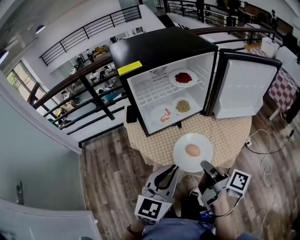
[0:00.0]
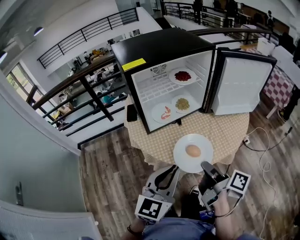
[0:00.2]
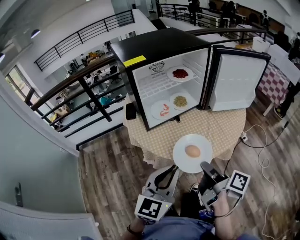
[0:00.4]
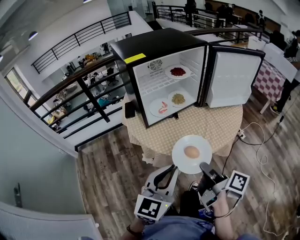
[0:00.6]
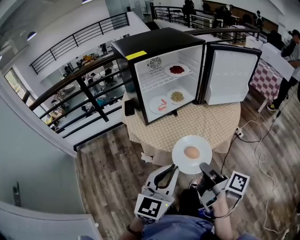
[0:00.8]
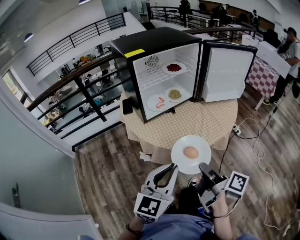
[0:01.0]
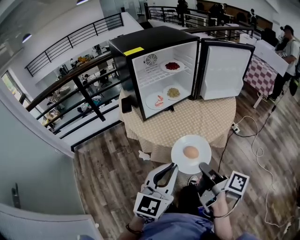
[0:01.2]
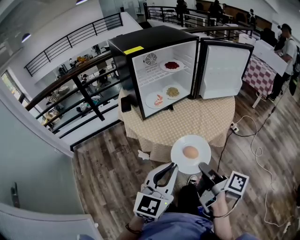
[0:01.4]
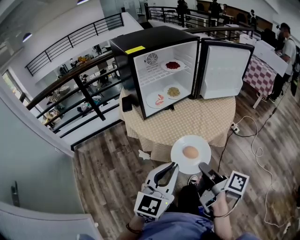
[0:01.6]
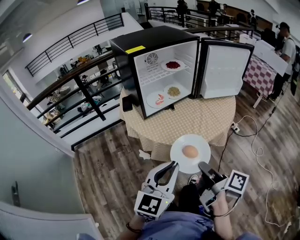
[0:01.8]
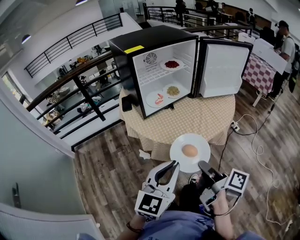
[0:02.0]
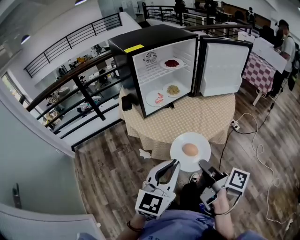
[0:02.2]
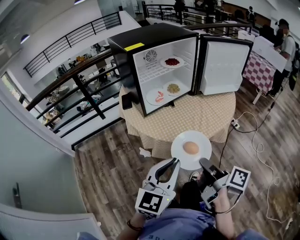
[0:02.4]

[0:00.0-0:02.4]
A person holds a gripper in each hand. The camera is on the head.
0:00.0 to 0:01.2: Both grippers travel together backward, about 15 cm.
0:01.2 to 0:02.4: The grippers move only a little.

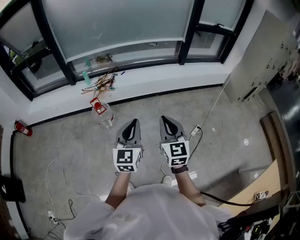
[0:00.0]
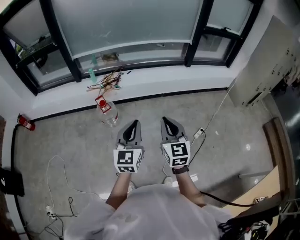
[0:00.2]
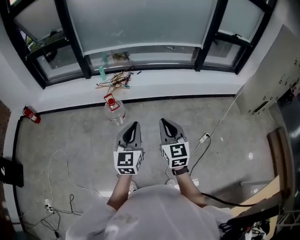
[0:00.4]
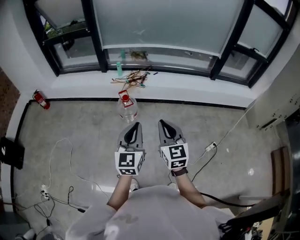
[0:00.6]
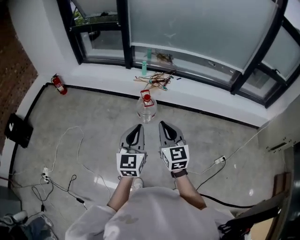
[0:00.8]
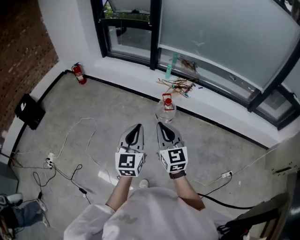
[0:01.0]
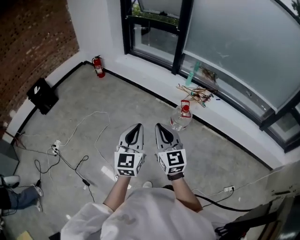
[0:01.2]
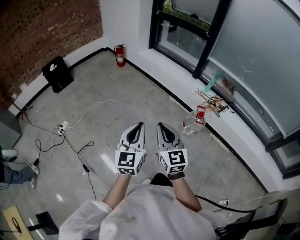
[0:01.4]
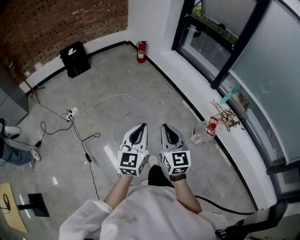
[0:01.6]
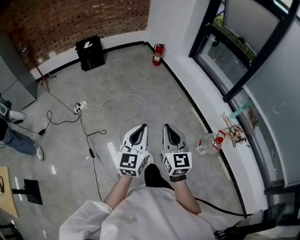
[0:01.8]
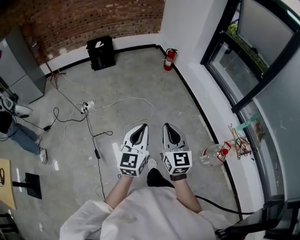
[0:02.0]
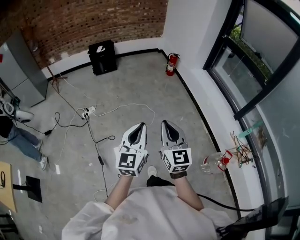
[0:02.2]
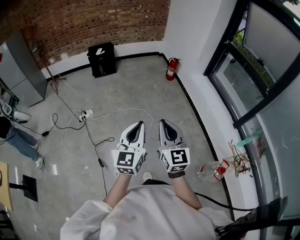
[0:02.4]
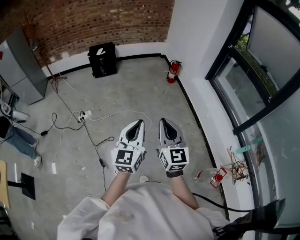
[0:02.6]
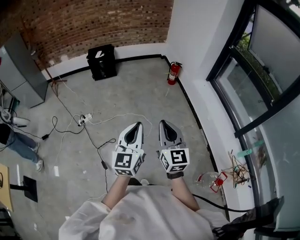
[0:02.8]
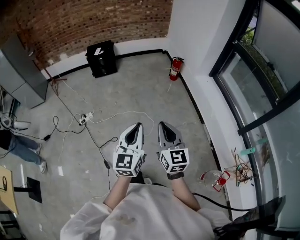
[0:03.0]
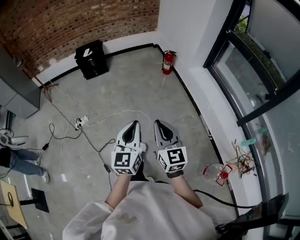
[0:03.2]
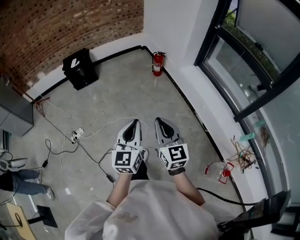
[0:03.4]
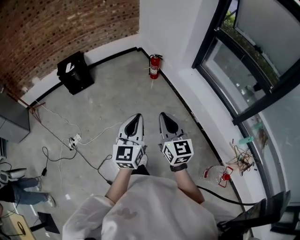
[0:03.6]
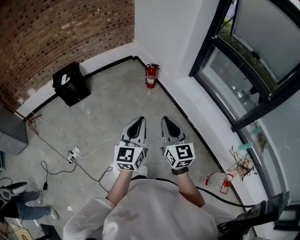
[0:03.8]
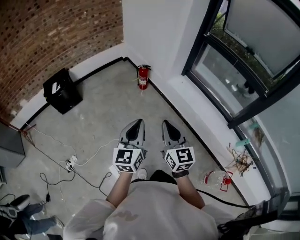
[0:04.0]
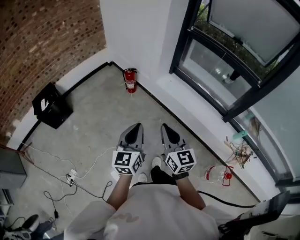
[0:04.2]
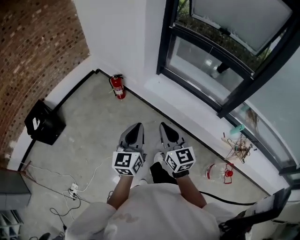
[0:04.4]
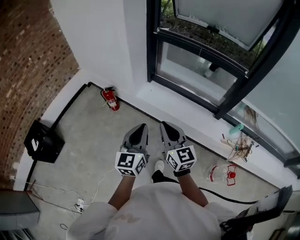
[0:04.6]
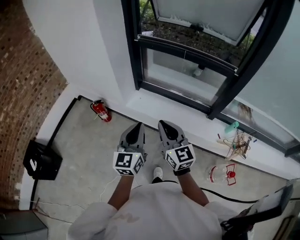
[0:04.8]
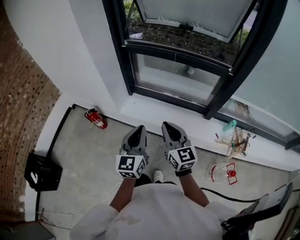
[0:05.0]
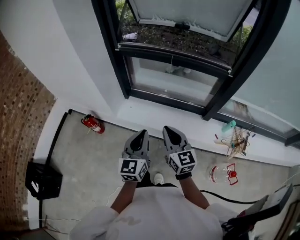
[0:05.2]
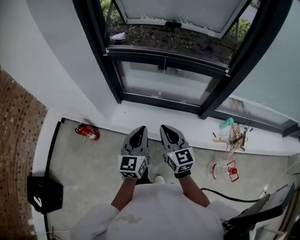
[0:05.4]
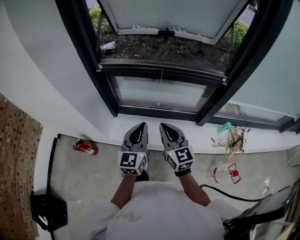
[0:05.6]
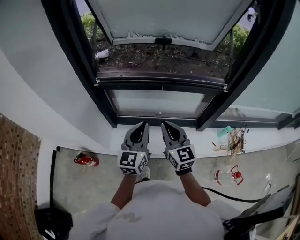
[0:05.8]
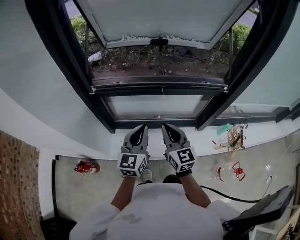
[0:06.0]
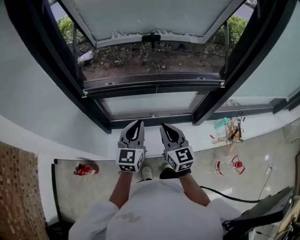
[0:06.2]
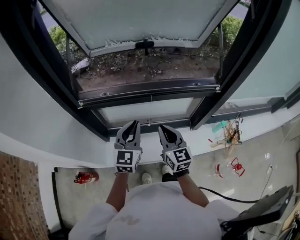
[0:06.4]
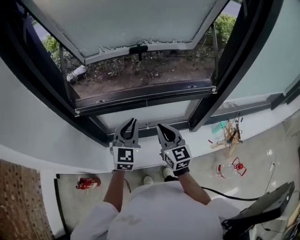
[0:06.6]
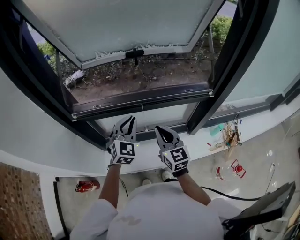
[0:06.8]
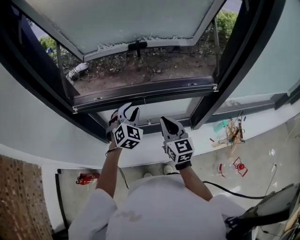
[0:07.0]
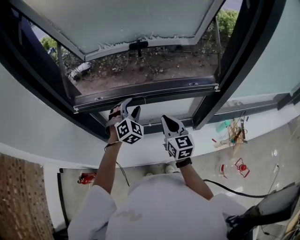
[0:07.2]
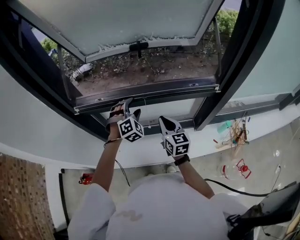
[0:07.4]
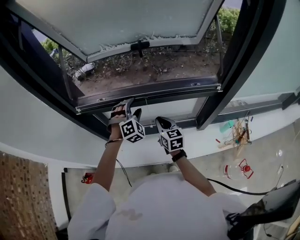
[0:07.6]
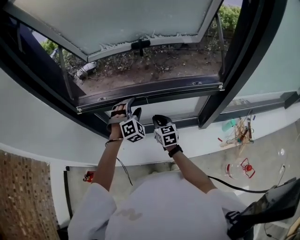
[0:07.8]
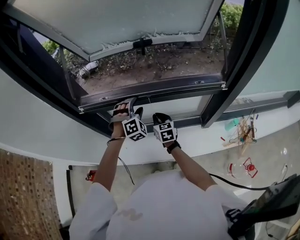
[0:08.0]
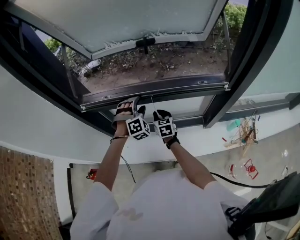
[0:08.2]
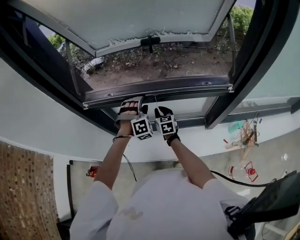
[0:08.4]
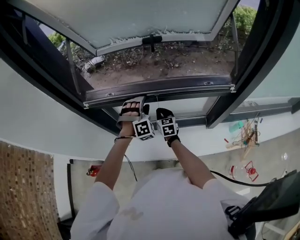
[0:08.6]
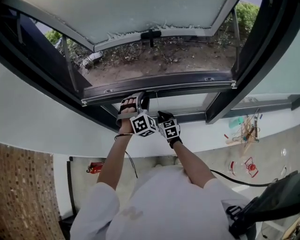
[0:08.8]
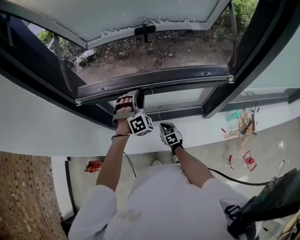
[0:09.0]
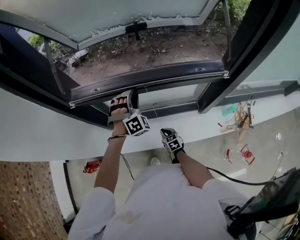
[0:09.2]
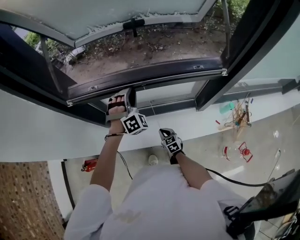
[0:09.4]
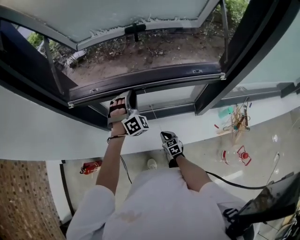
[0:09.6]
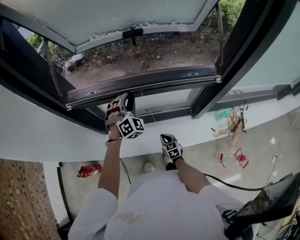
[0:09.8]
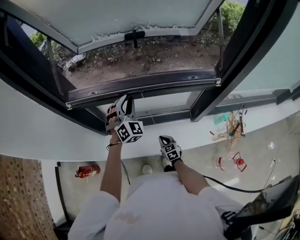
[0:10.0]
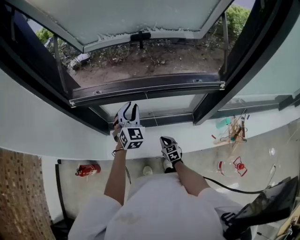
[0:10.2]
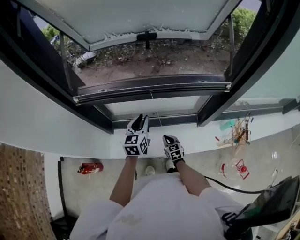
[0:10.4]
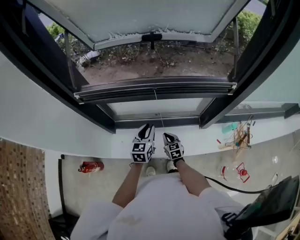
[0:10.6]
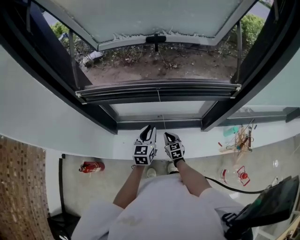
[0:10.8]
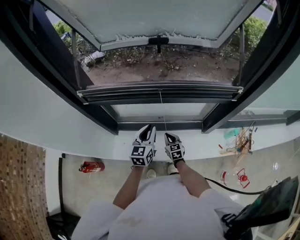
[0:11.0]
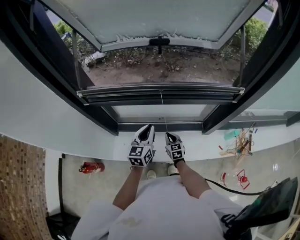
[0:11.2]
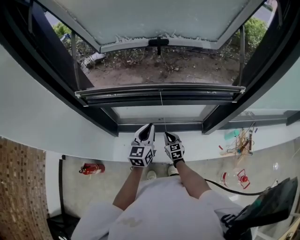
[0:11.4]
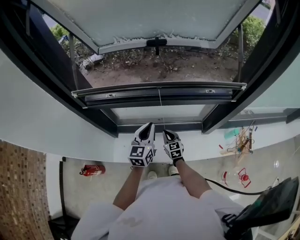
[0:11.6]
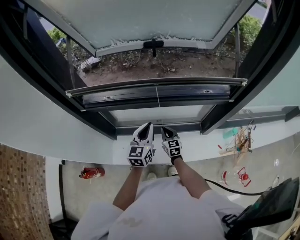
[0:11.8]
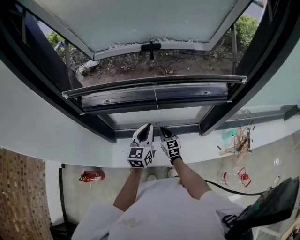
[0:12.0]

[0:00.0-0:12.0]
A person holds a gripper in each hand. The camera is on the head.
0:00.0 to 0:01.6: Both grippers are carried some 60 cm. The left gripper turns by approximately 60 degrees, while the right gripper rotates roughly 70 degrees.
0:01.6 to 0:03.0: Both grippers move forward, some 40 cm. The right gripper rotates some 20 degrees. The left gripper swivels some 20 degrees.
0:03.0 to 0:04.4: Both grippers are carried about 50 cm. The left gripper rotates about 40 degrees. The right gripper turns by some 30 degrees.
0:04.4 to 0:06.0: Both grippers are carried roughly 60 cm. The right gripper turns by approximately 40 degrees. The left gripper turns by about 40 degrees.
0:06.0 to 0:07.6: The left gripper is displaced forward by roughly 20 cm, rolls clockwise, seen from behind, by some 70 degrees, and opens up. Meanwhile the right gripper travels forward, downward and to the right by approximately 20 cm.
0:07.6 to 0:09.0: The left gripper closes, while the right gripper moves downward, roughly 25 cm, and changes its angle by some 20 degrees.
0:09.0 to 0:10.4: Both grippers travel together backward, approximately 5 cm. The left gripper rolls counterclockwise, seen from behind, by some 80 degrees.
0:10.4 to 0:12.0: The right gripper is displaced upward and forward by approximately 15 cm.

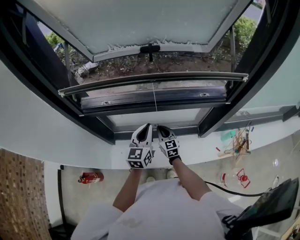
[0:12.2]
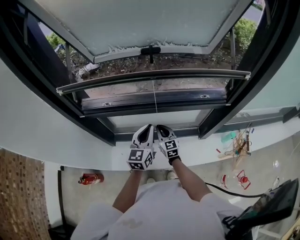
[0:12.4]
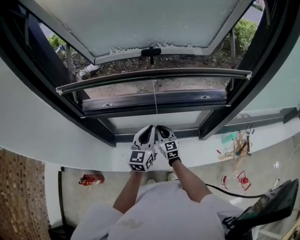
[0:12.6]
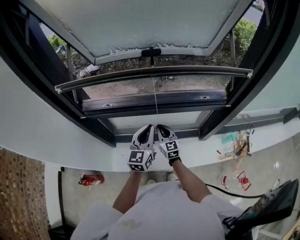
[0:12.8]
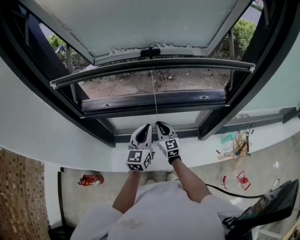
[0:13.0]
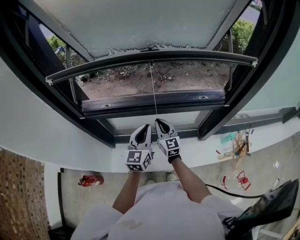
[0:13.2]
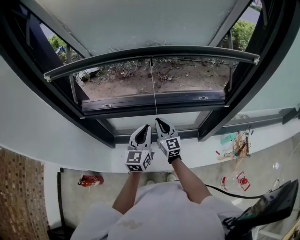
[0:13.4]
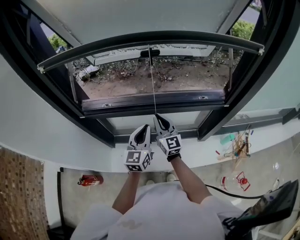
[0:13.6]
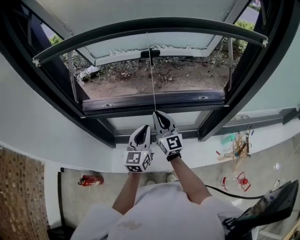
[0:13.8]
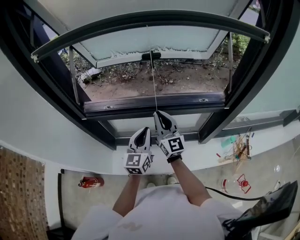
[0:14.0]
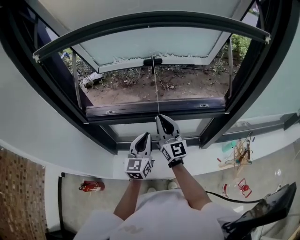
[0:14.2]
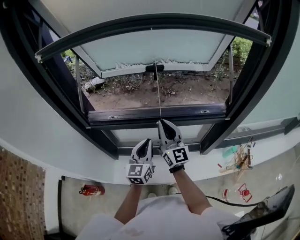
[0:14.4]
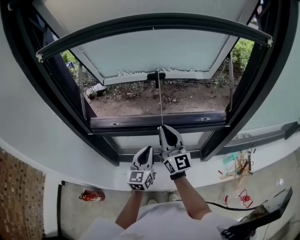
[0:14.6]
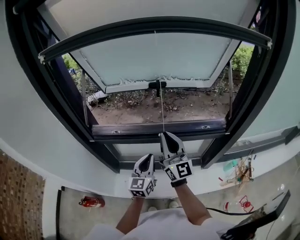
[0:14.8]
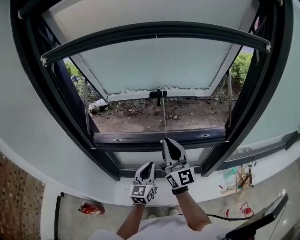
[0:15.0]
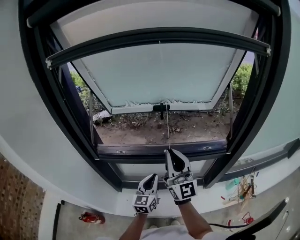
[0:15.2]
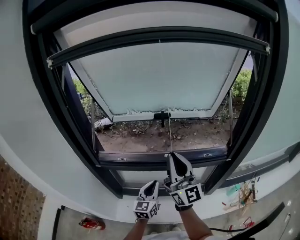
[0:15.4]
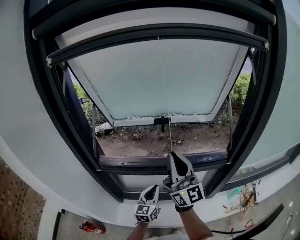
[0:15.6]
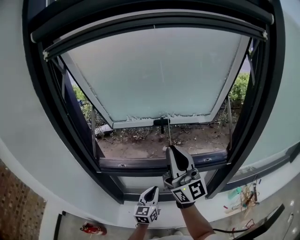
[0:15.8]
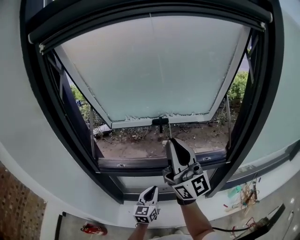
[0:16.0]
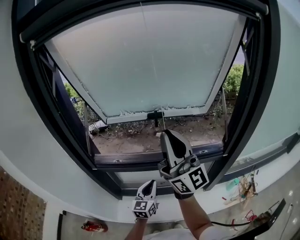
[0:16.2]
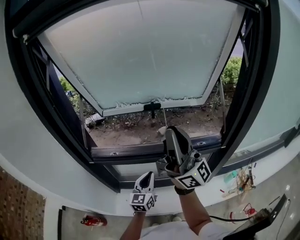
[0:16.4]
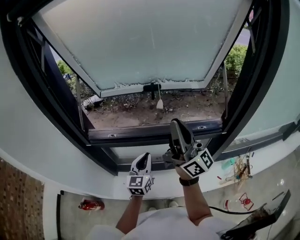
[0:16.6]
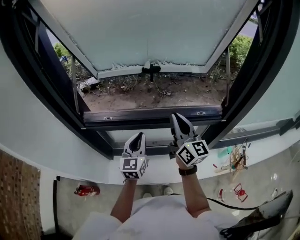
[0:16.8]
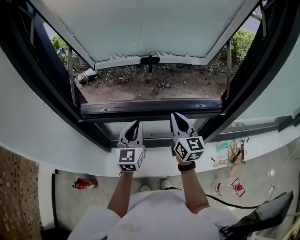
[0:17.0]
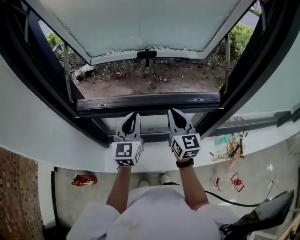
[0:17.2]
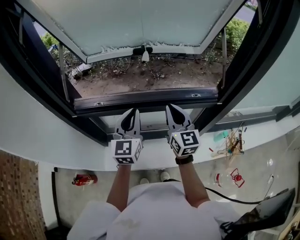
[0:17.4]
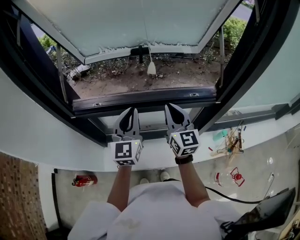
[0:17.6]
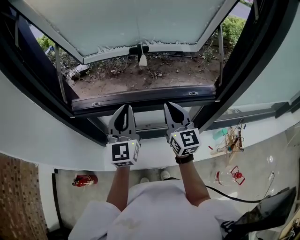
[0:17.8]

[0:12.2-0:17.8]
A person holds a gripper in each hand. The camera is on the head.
0:12.2 to 0:13.6: The right gripper shifts some 20 cm upward, and turns by about 20 degrees.
0:13.6 to 0:15.0: The right gripper heads upward, covering approximately 20 cm, and rotates some 20 degrees.
0:15.0 to 0:16.4: The right gripper shifts about 15 cm upward, and rotates about 30 degrees.
0:16.4 to 0:17.8: The left gripper travels upward by some 15 cm, and swivels about 20 degrees; the right gripper moves downward, some 25 cm, and tips its fingers downward by approximately 50 degrees.

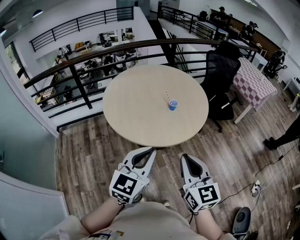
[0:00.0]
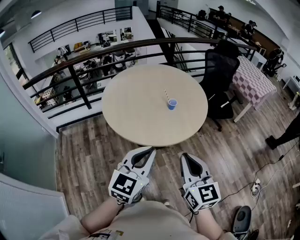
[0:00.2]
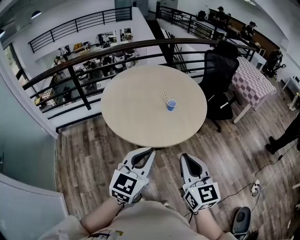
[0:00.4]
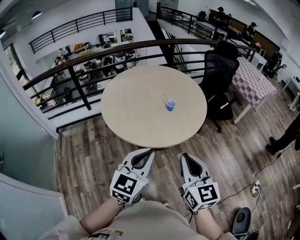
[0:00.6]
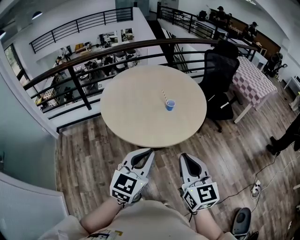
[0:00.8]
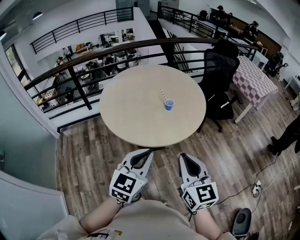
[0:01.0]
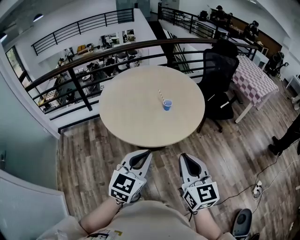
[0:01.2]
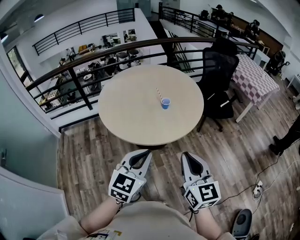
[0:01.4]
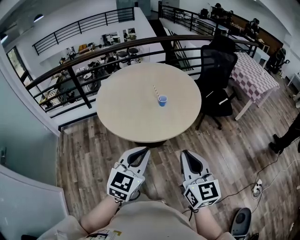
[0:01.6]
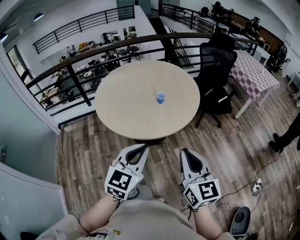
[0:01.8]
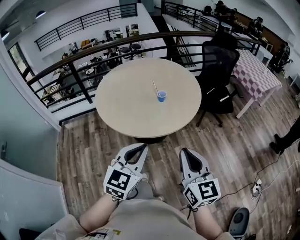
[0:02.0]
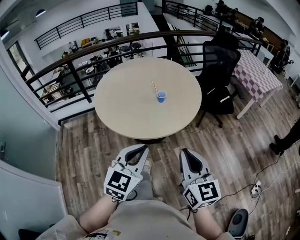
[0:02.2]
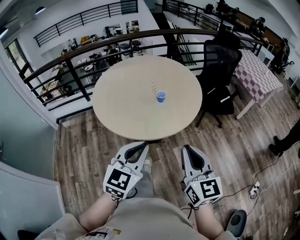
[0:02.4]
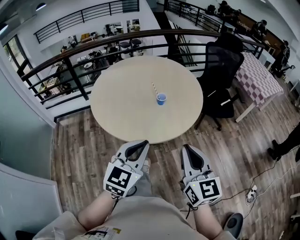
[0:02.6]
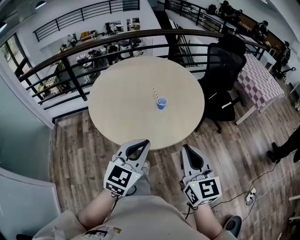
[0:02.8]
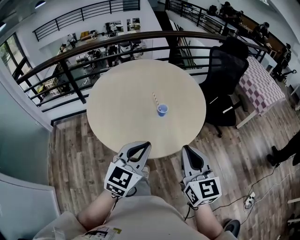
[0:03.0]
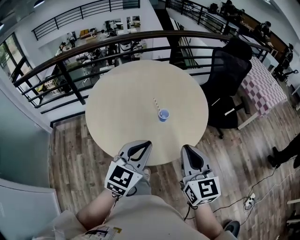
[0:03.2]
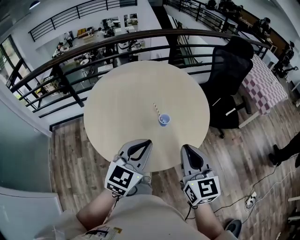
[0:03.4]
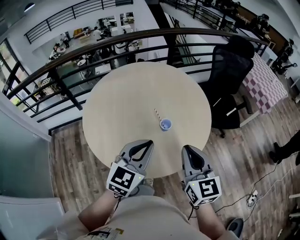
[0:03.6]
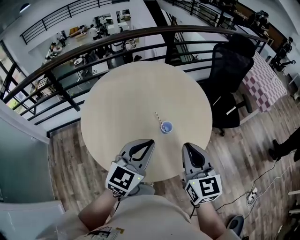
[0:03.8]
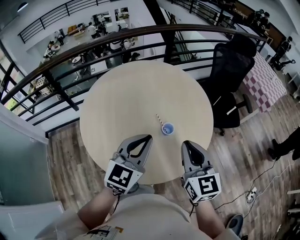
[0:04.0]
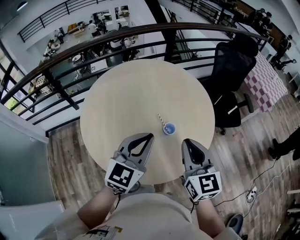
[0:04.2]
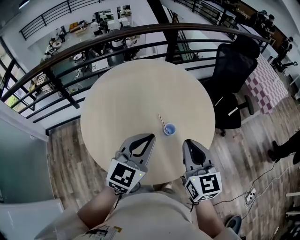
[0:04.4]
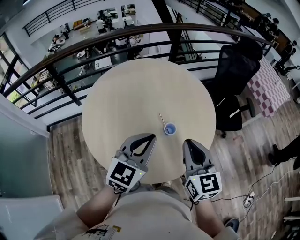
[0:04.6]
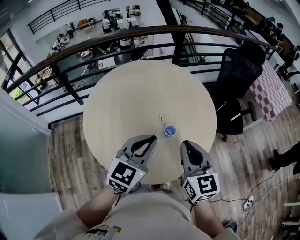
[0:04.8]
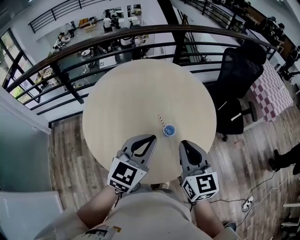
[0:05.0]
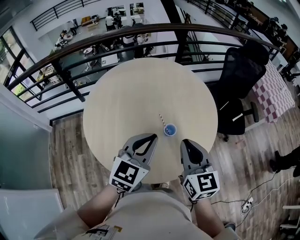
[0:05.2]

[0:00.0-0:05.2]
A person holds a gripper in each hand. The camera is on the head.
0:00.0 to 0:01.8: The grippers both shift to the right by roughly 15 cm.
0:01.8 to 0:03.4: The grippers both shift forward by about 30 cm.
0:03.4 to 0:05.2: The two grippers go approximately 15 cm forward.
